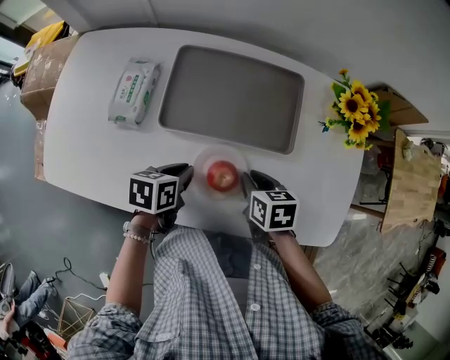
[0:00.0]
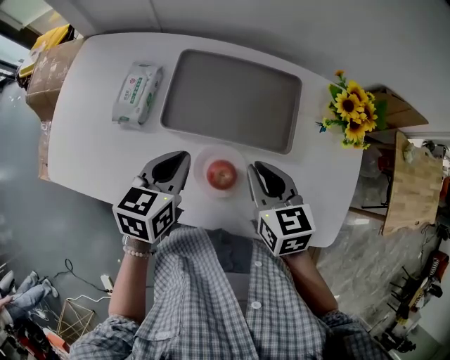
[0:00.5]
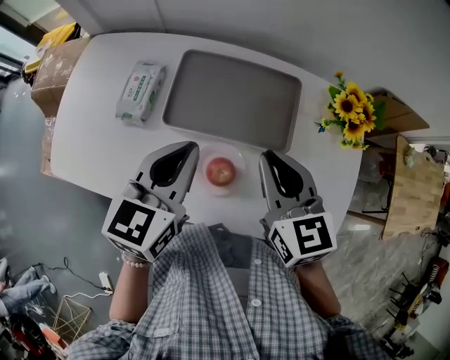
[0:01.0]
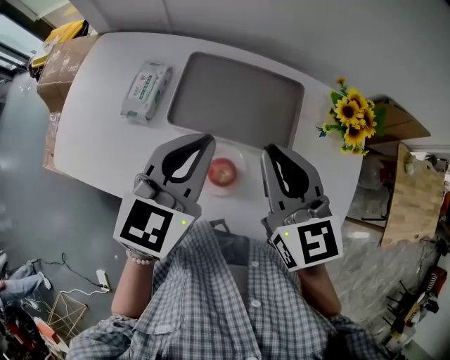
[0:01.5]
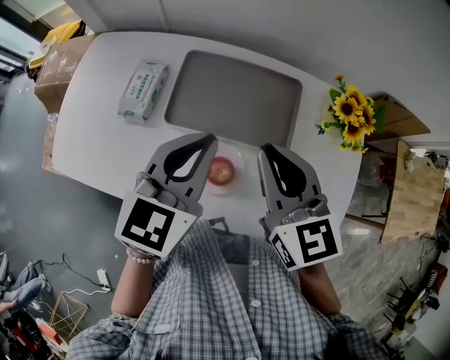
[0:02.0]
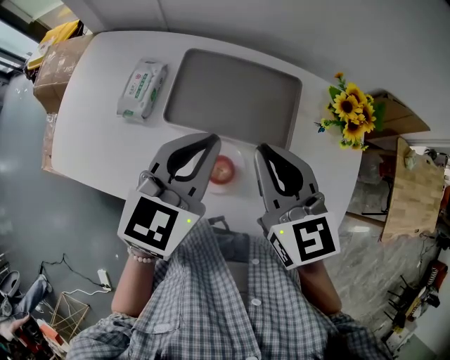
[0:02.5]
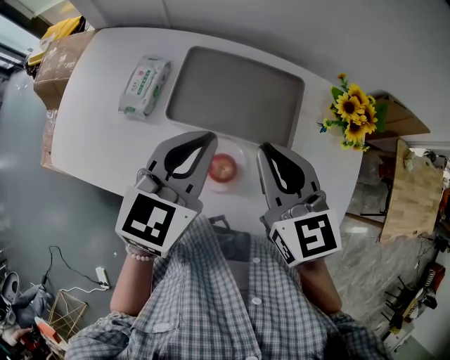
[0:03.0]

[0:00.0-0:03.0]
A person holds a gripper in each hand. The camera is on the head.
0:00.0 to 0:01.5: Both grippers travel together upward, about 25 cm. The left gripper points its fingers approximately 30 degrees further upward. The right gripper tips its fingers upward by roughly 40 degrees.
0:01.5 to 0:03.0: The grippers move only a little.

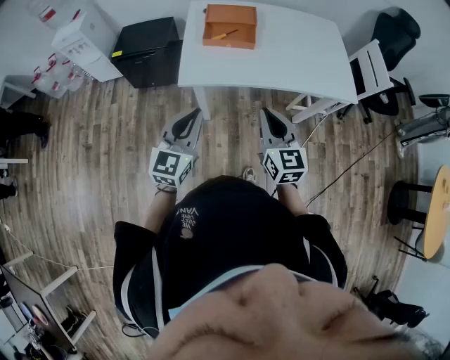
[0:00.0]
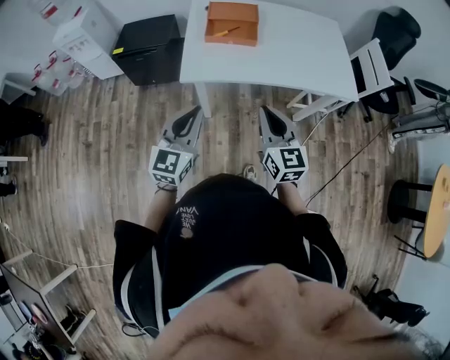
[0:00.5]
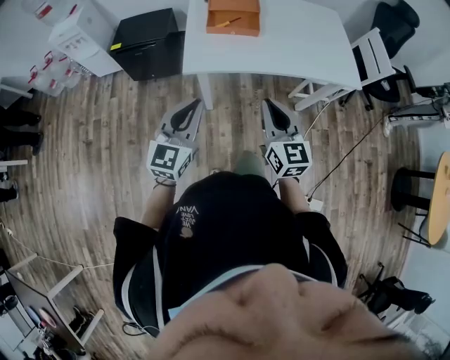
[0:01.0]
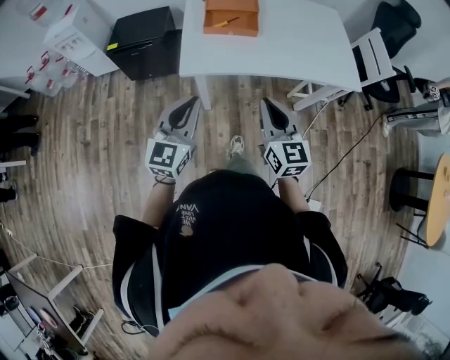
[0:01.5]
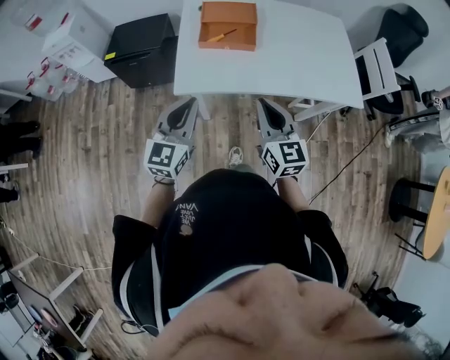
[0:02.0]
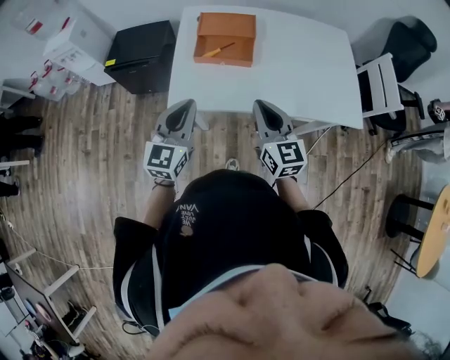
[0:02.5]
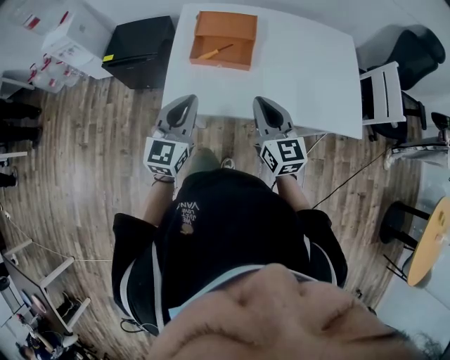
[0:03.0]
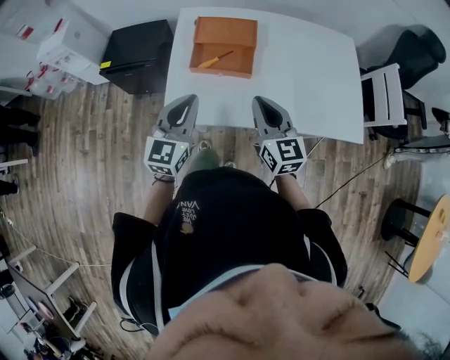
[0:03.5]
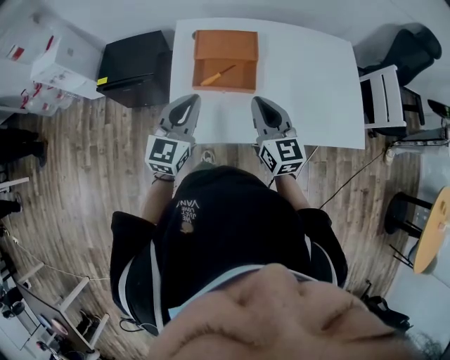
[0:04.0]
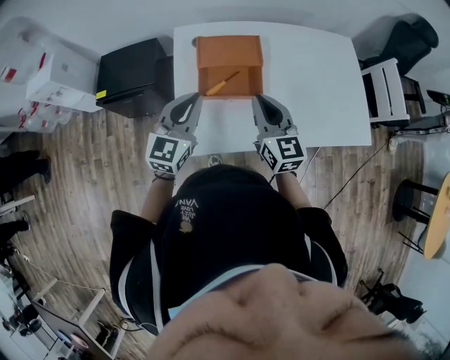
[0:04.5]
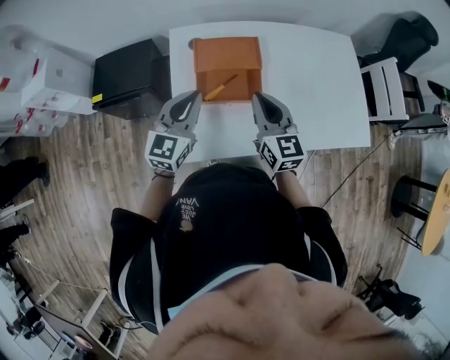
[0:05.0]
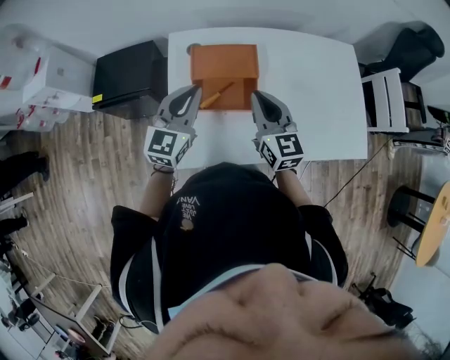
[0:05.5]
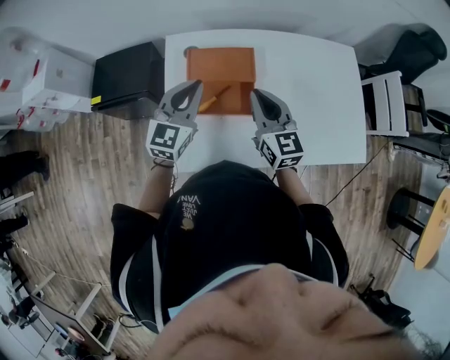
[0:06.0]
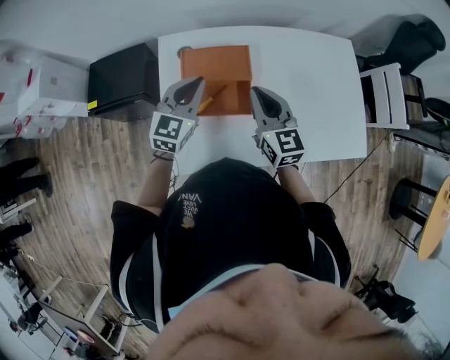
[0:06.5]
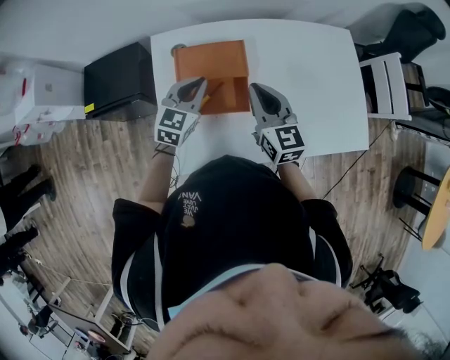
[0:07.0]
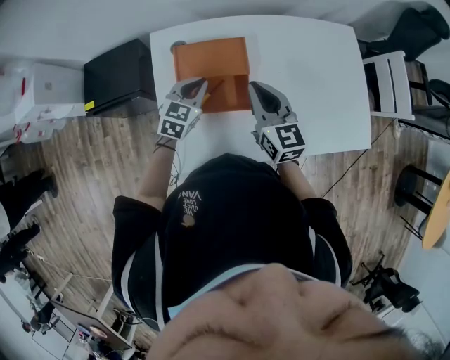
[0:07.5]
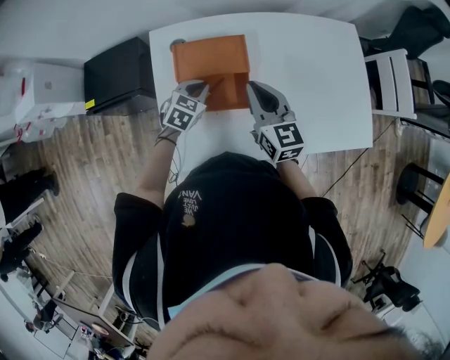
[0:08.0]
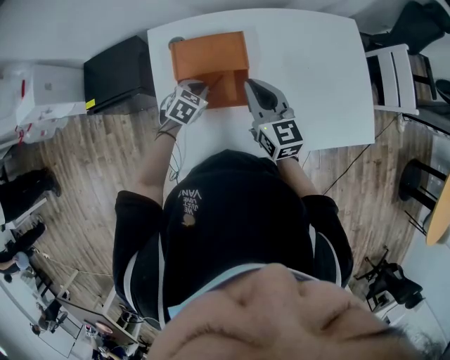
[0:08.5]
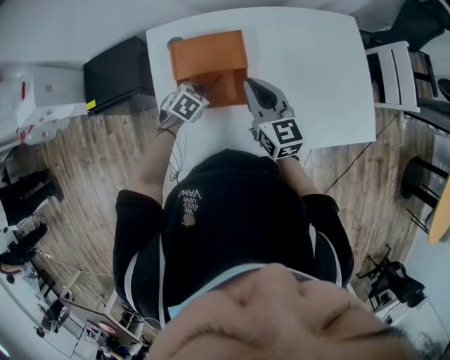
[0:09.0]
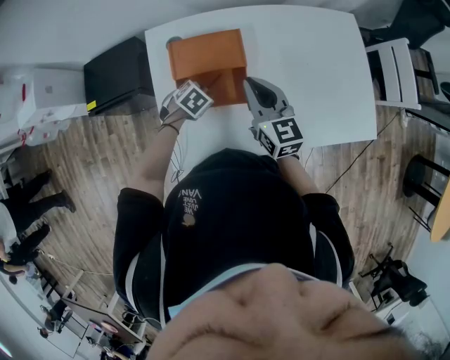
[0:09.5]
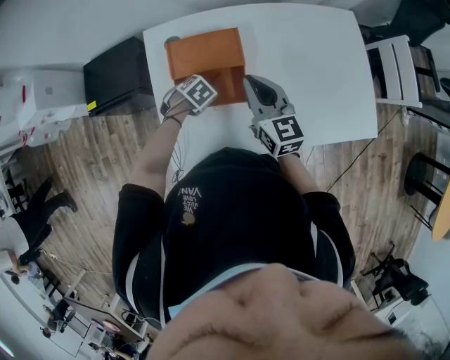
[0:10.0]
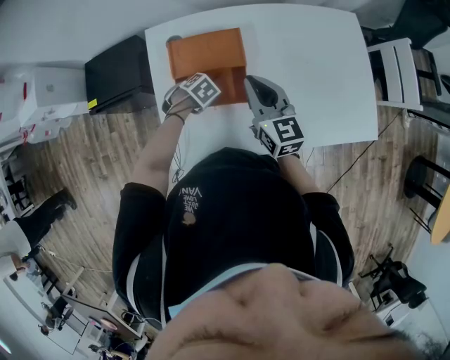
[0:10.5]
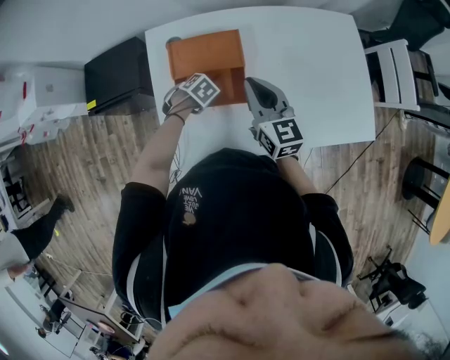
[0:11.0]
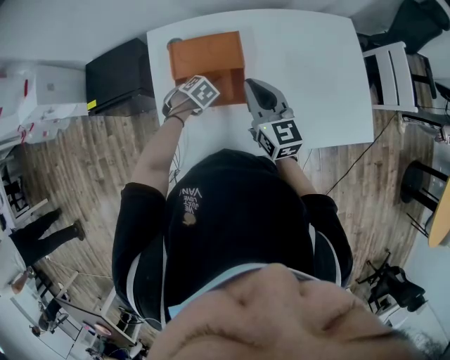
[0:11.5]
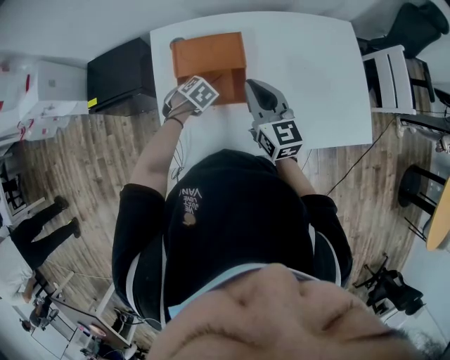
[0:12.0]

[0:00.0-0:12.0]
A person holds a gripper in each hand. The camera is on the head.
0:00.0 to 0:02.0: Both grippers travel together forward, approximately 10 cm.
0:02.0 to 0:04.0: Both grippers travel together forward, approximately 20 cm.
0:04.0 to 0:06.0: Both grippers travel together forward, about 15 cm.
0:06.0 to 0:08.0: The left gripper moves downward, approximately 20 cm, and points its fingers roughly 40 degrees further downward.
0:08.0 to 0:10.0: The left gripper goes about 10 cm downward, points its fingers approximately 30 degrees further downward, and opens its fingers.
0:10.0 to 0:12.0: The grippers move only a little.

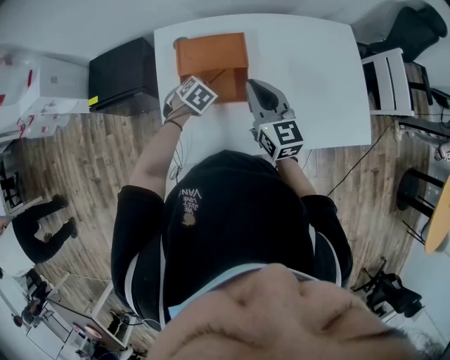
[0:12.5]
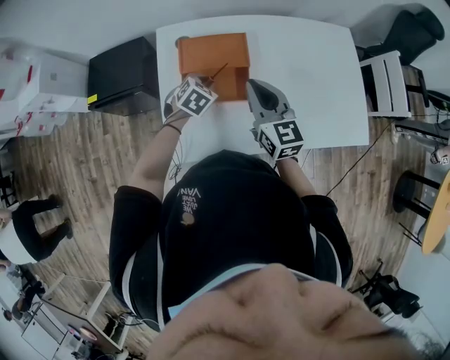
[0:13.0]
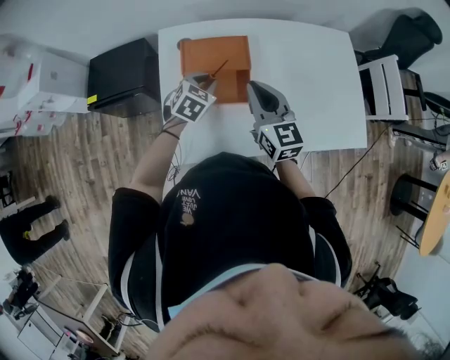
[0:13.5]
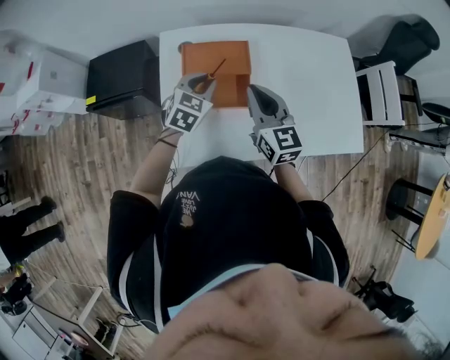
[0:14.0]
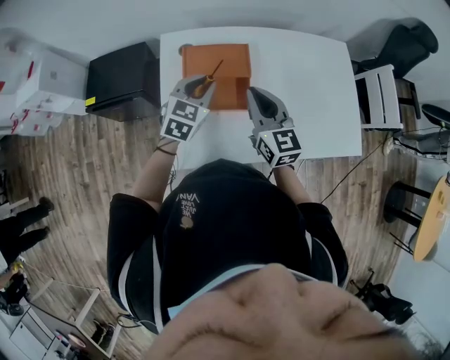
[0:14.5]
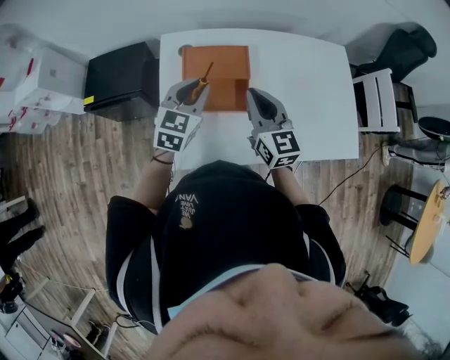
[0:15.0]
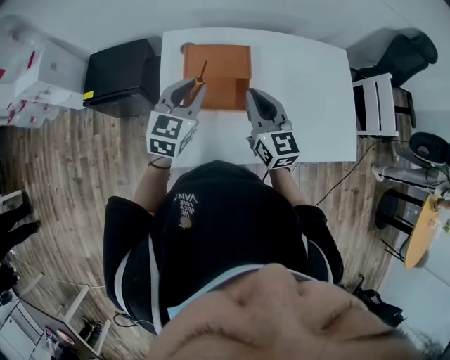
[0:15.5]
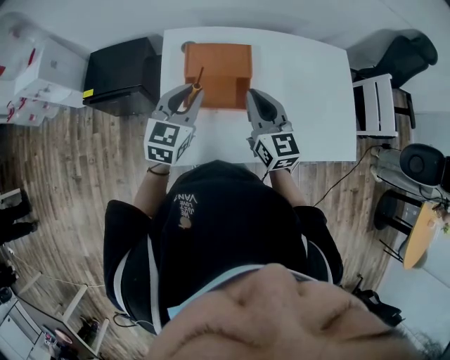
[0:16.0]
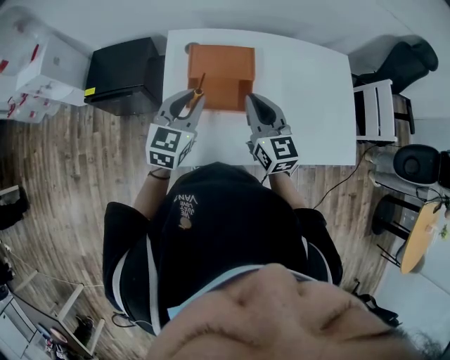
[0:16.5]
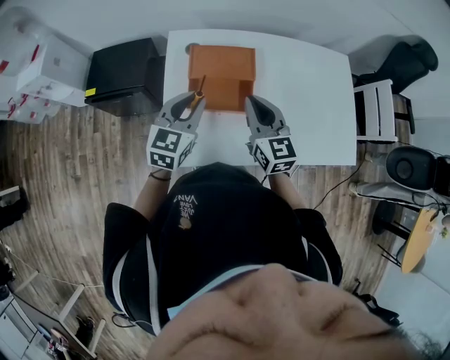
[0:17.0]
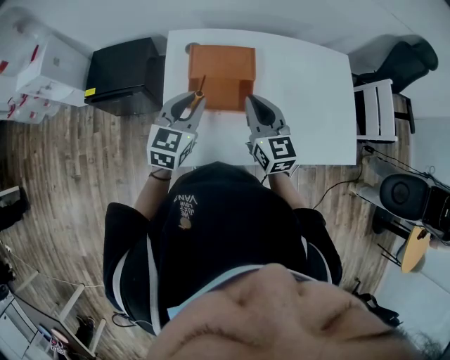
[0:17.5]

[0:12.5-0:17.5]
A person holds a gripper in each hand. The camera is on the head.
0:12.5 to 0:15.0: The left gripper is displaced upward by roughly 20 cm, and tilts its fingers some 40 degrees upward.
0:15.0 to 0:17.5: The left gripper changes place by about 5 cm.

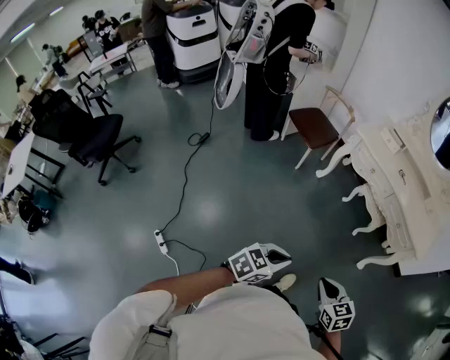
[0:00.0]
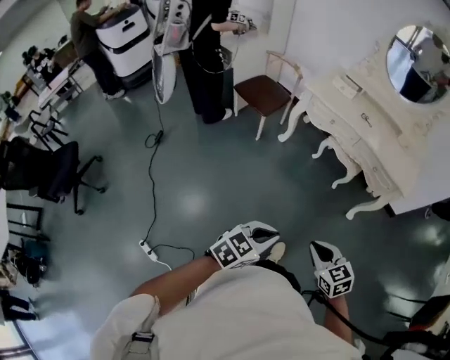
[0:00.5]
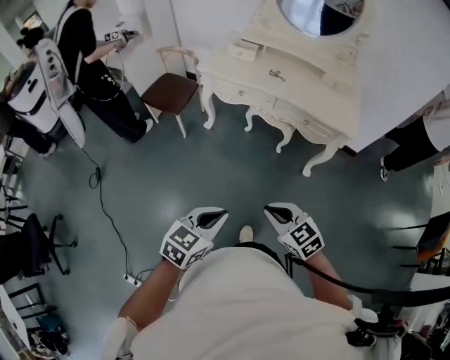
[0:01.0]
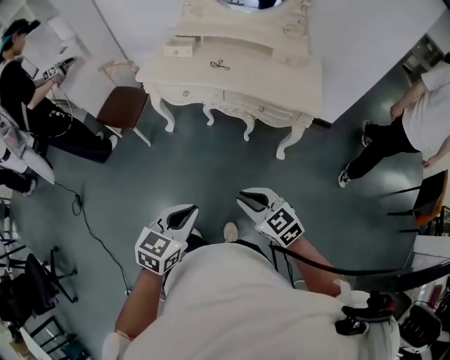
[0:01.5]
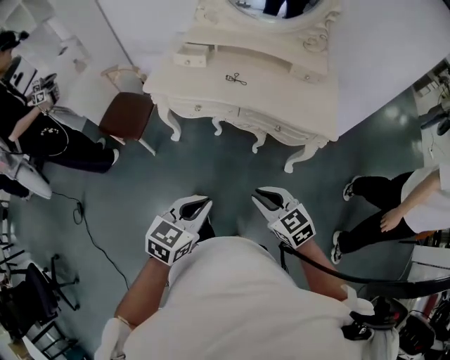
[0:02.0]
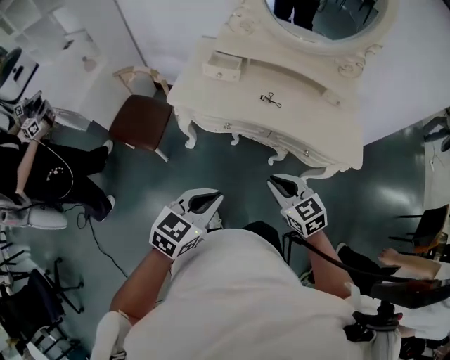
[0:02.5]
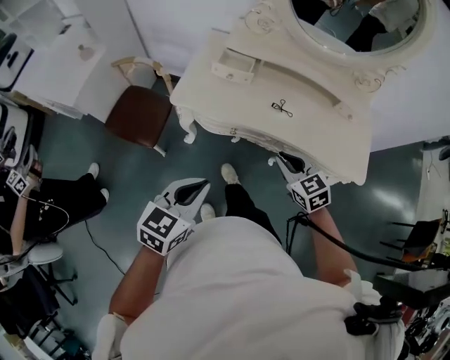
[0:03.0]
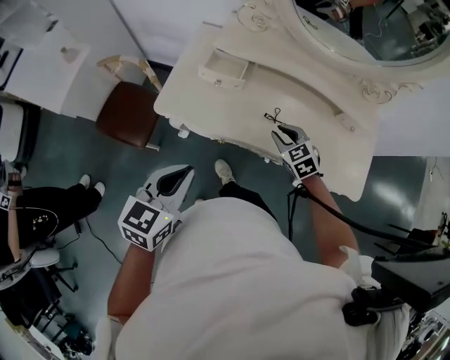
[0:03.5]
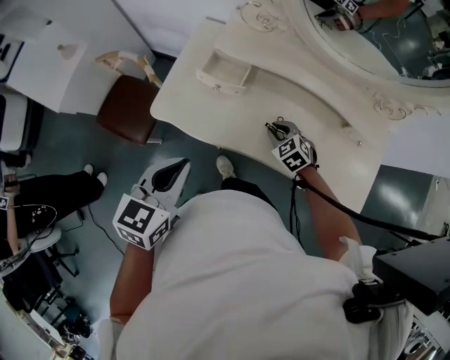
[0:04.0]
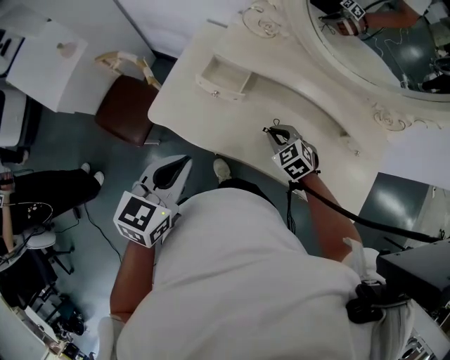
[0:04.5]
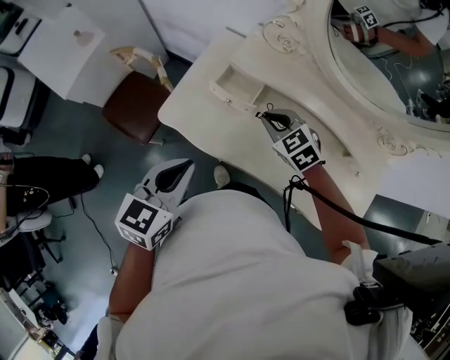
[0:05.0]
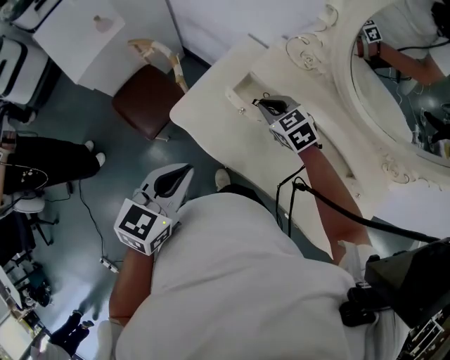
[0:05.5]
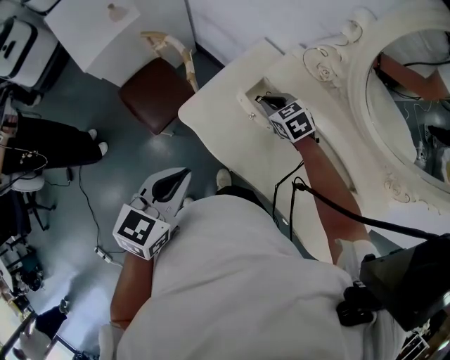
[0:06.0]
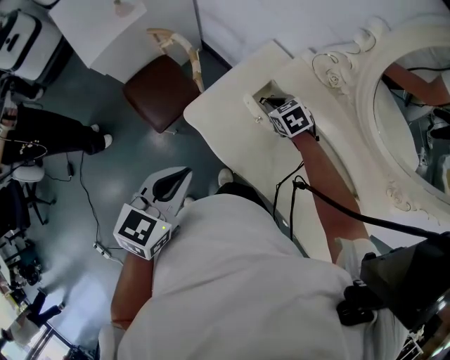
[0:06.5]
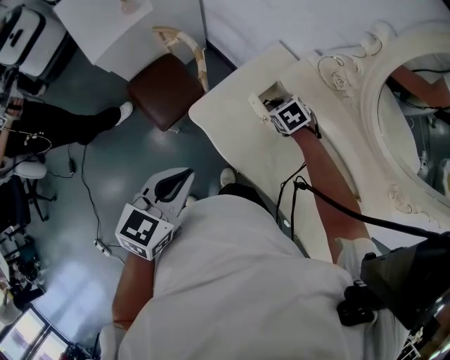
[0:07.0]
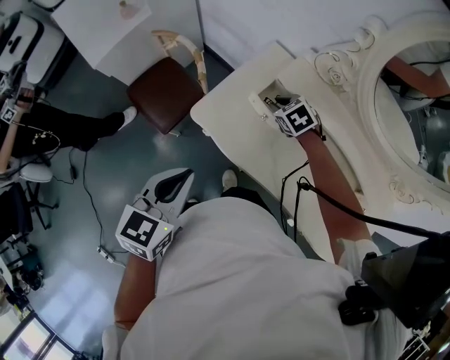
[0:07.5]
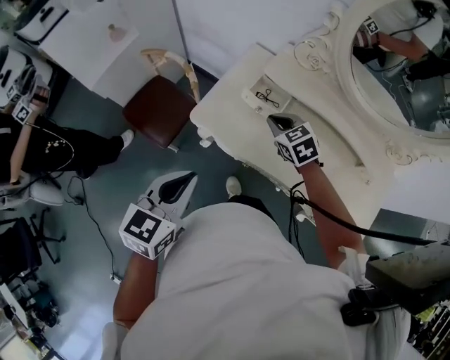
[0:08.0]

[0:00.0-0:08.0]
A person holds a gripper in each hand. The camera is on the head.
0:00.0 to 0:02.0: Both grippers are carried forward and to the right, approximately 40 cm.
0:02.0 to 0:04.0: The pair of grippers is taken forward, approximately 60 cm. The right gripper rotates approximately 30 degrees.
0:04.0 to 0:06.0: The right gripper moves forward and to the left, about 25 cm, while the left gripper ends up about 5 cm from where it was.
0:06.0 to 0:08.0: The left gripper shifts roughly 10 cm to the left and backward. Meanwhile the right gripper heads backward and upward, covering approximately 15 cm.
